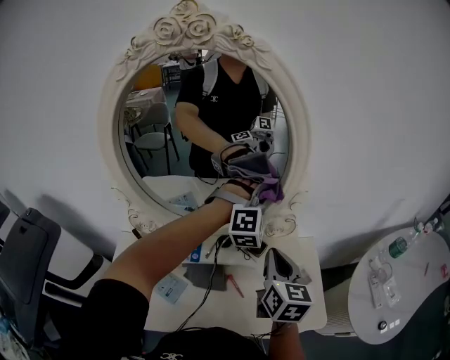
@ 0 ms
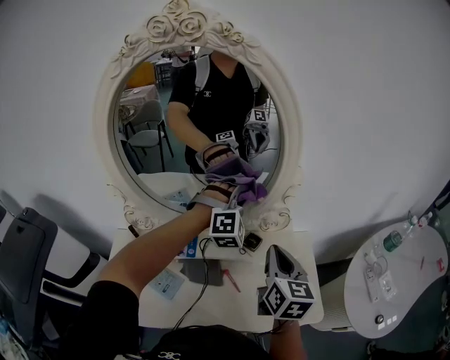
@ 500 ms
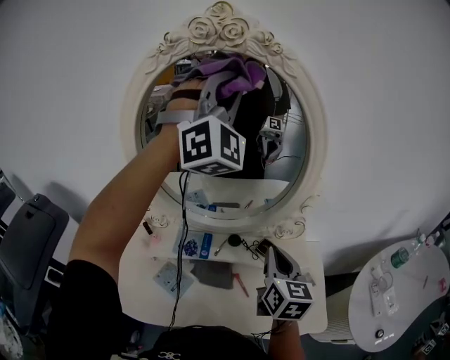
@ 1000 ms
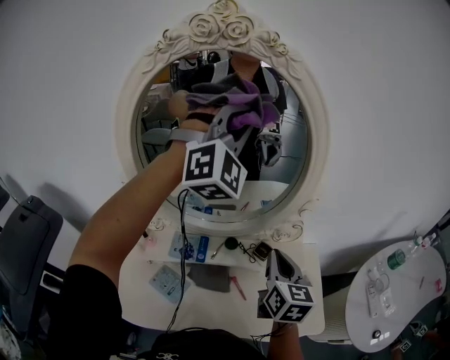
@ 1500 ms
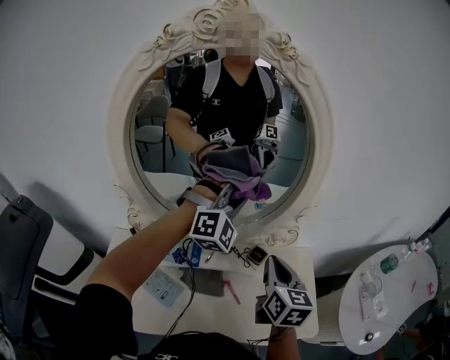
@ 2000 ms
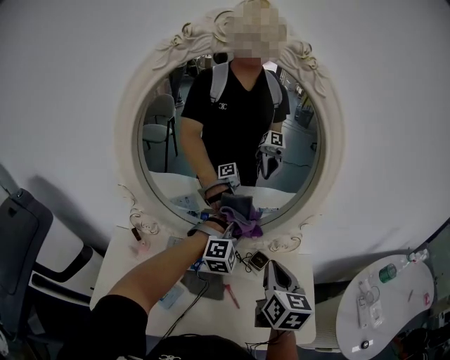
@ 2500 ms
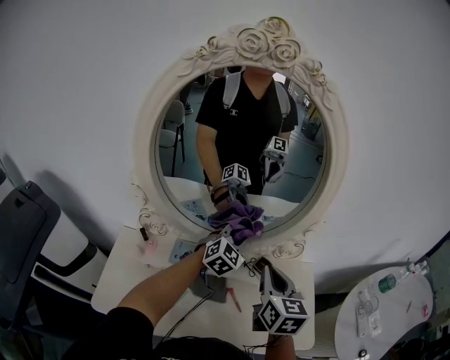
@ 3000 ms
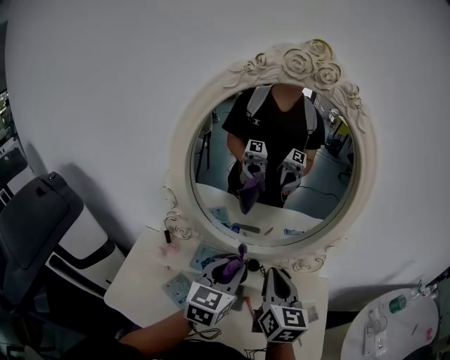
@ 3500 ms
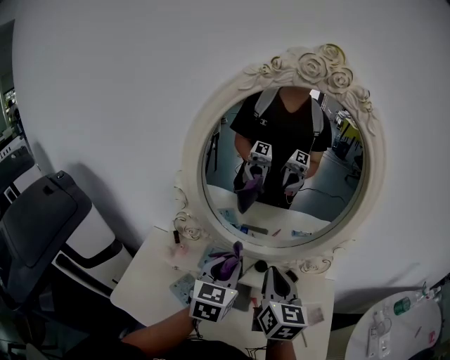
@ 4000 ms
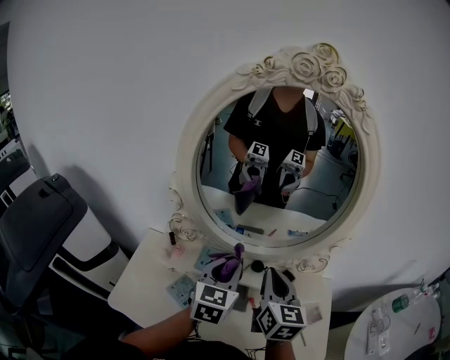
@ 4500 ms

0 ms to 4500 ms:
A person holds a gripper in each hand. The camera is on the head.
0 ms to 2000 ms: The left gripper shifts some 10 cm to the left, and moves about 35 cm upward and comes back.
2000 ms to 4500 ms: The right gripper moves to the left, some 10 cm, while the left gripper shifts some 20 cm backward, to the left and downward, and rotates around the line of its fingers by about 70 degrees, counterclockwise from behind.

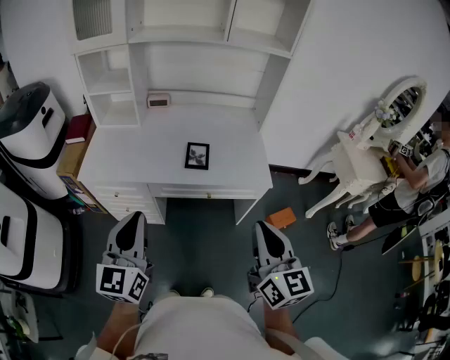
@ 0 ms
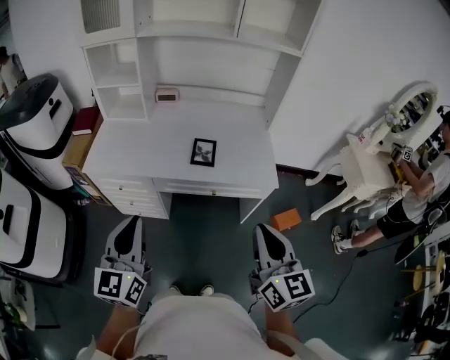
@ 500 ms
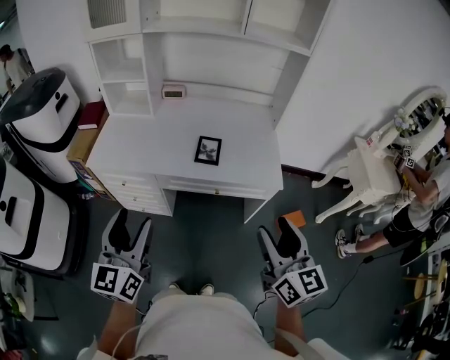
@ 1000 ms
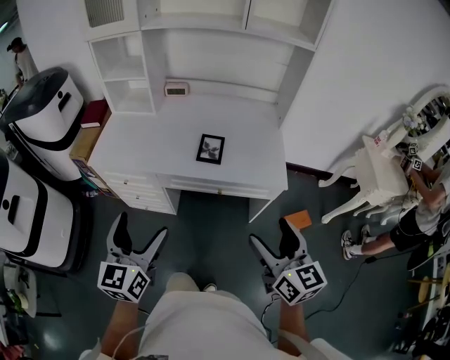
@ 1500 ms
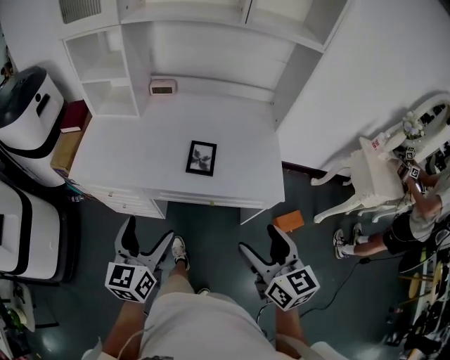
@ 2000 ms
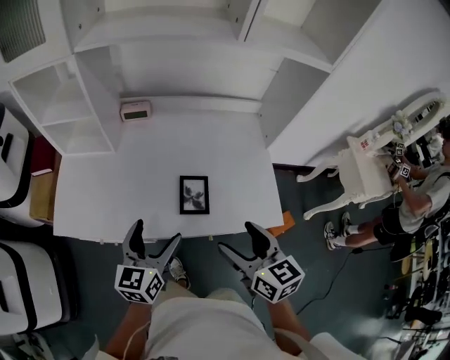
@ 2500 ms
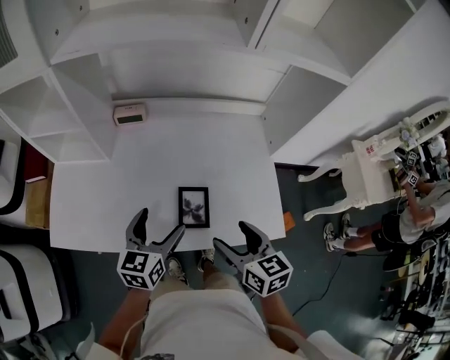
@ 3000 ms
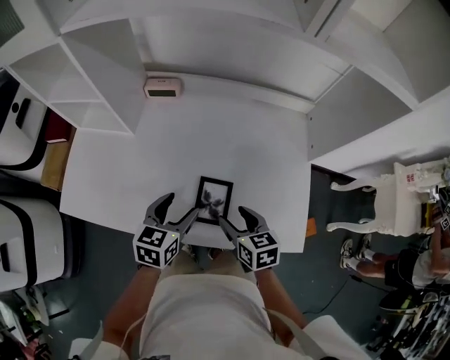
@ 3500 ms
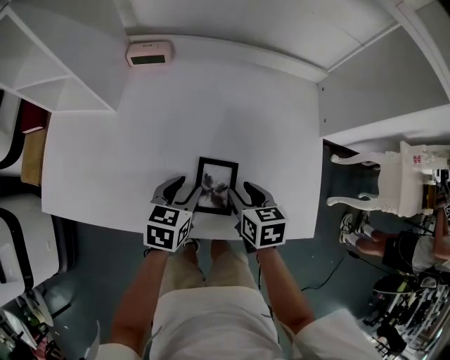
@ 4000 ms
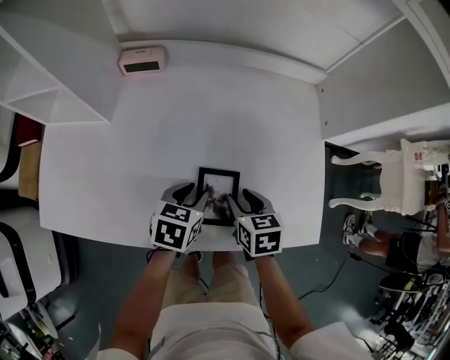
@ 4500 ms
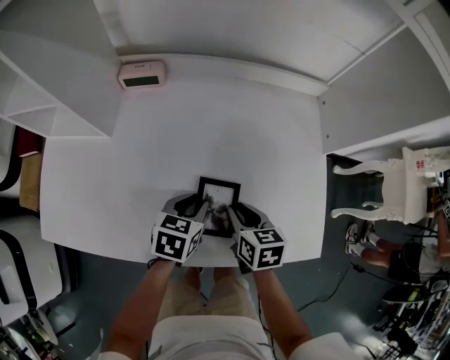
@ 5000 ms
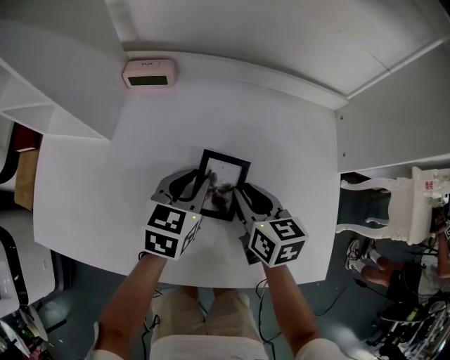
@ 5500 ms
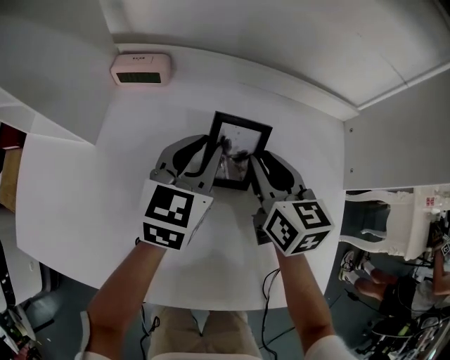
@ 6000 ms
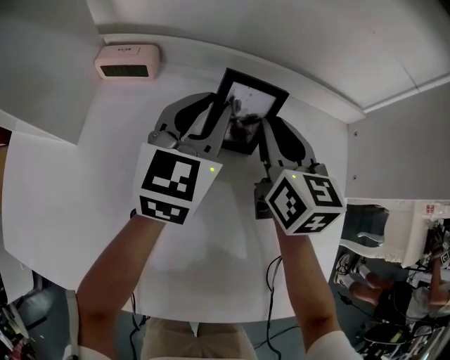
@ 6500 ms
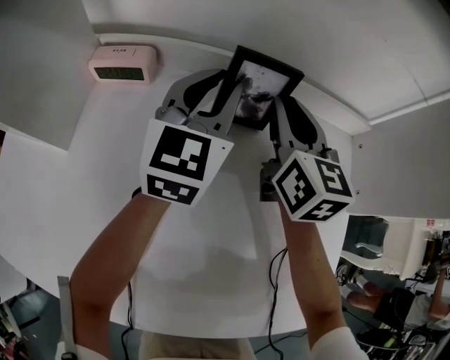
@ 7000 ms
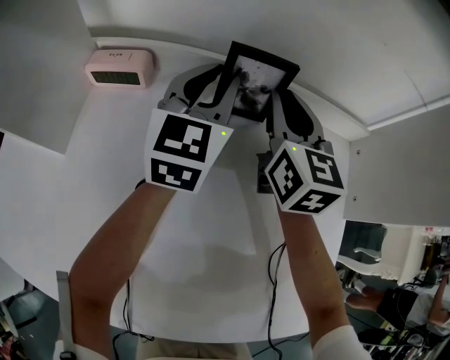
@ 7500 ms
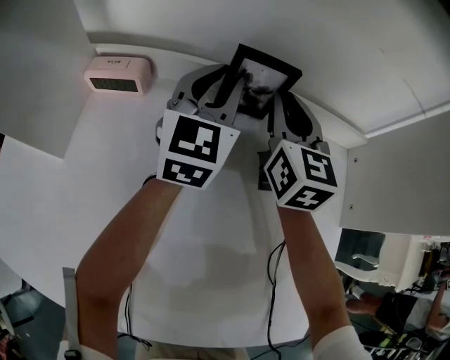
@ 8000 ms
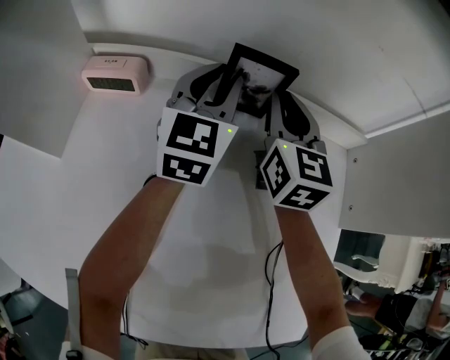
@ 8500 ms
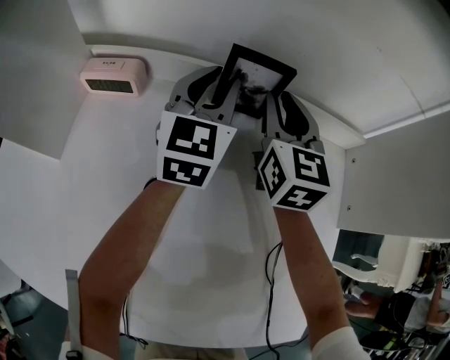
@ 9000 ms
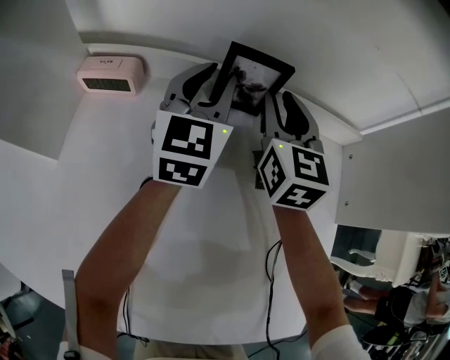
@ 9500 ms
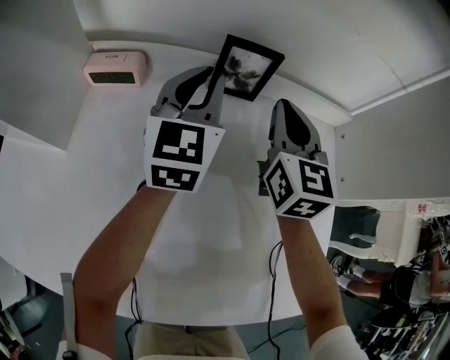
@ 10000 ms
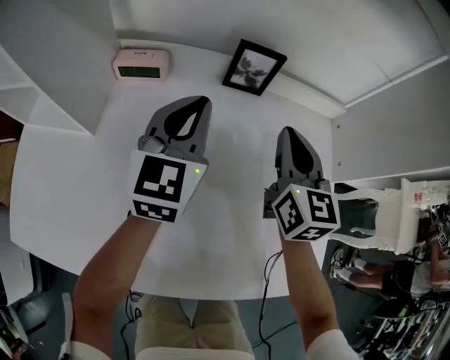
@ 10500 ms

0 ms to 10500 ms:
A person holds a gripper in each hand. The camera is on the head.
0 ms to 2000 ms: The left gripper is displaced downward and forward by about 15 cm, and opens; the right gripper moves forward and downward, some 15 cm, and opens its fingers.
2000 ms to 4000 ms: The grippers both shift forward and downward by approximately 40 cm. The right gripper tilts its fingers approximately 30 degrees downward, and closes its fingers. The left gripper angles its fingers downward, by approximately 30 degrees, and closes its fingers.
4000 ms to 6500 ms: Both grippers travel together forward, some 30 cm. The right gripper tilts its fingers some 30 degrees upward, while the left gripper points its fingers approximately 30 degrees further upward.
6500 ms to 8500 ms: The grippers both shift forward by approximately 10 cm.
8500 ms to 10500 ms: The two grippers go some 15 cm backward.

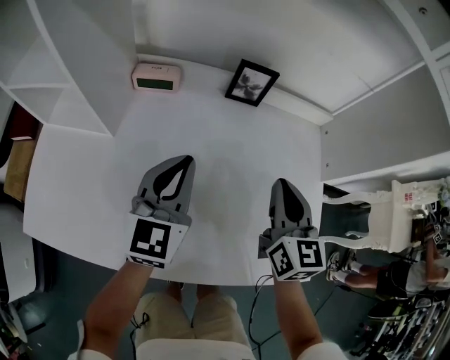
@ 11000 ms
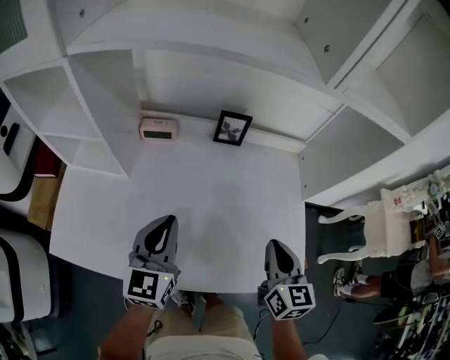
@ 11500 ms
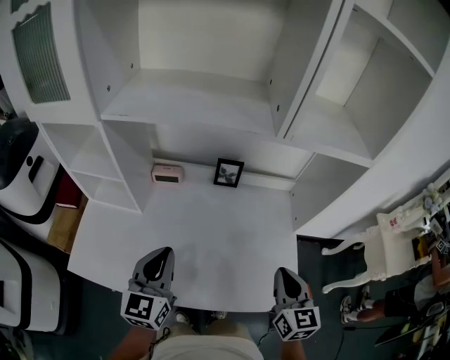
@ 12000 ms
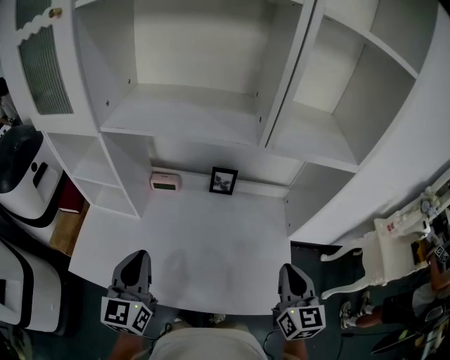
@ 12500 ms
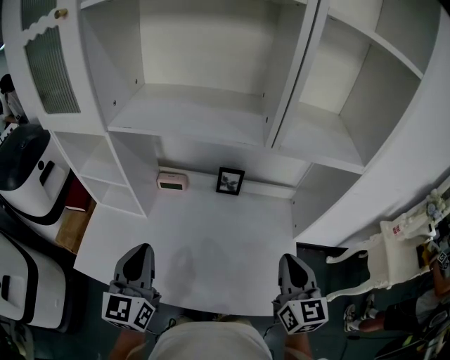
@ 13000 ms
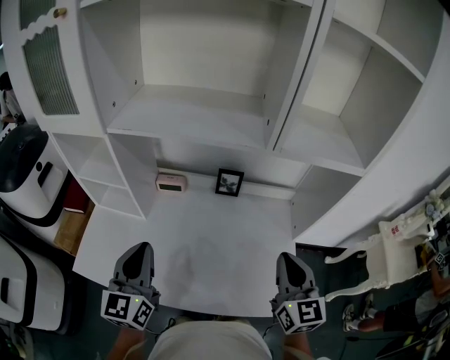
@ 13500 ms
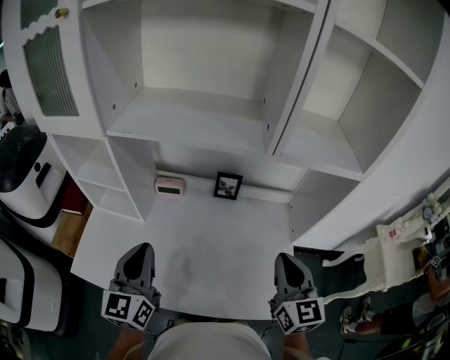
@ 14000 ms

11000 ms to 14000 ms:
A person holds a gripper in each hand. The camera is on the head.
11000 ms to 12500 ms: The left gripper is displaced upward and backward by some 25 cm. Meanwhile the right gripper is displaced upward, backward and to the right by approximately 25 cm.
12500 ms to 14000 ms: The right gripper shifts by roughly 5 cm.

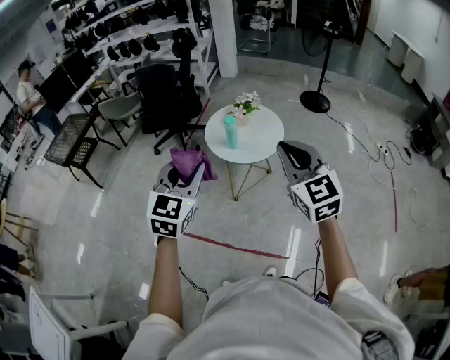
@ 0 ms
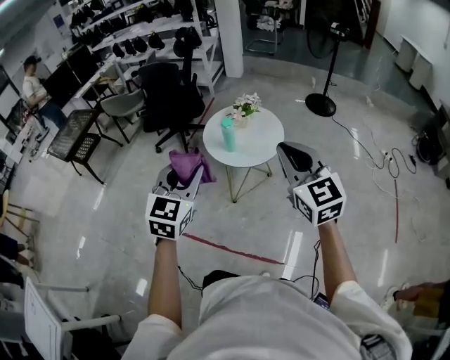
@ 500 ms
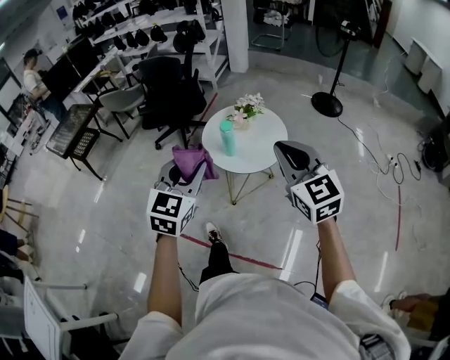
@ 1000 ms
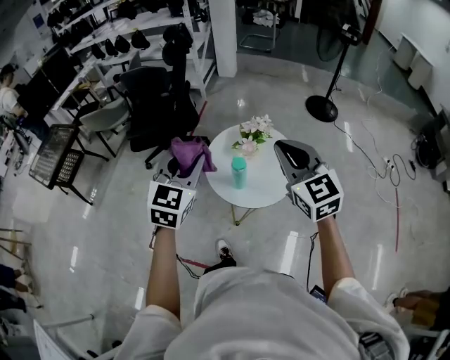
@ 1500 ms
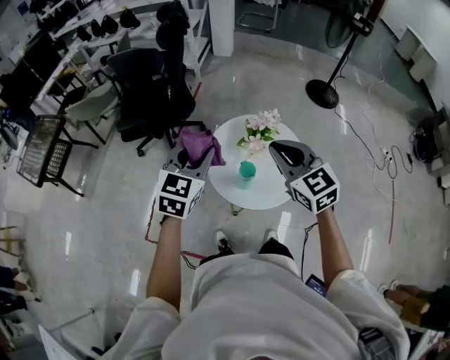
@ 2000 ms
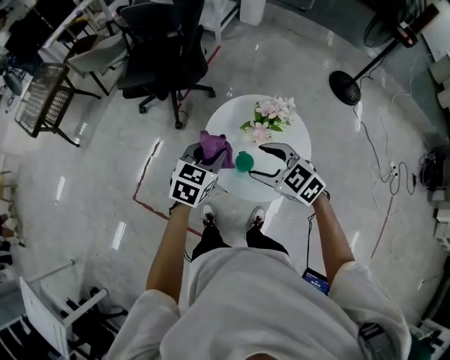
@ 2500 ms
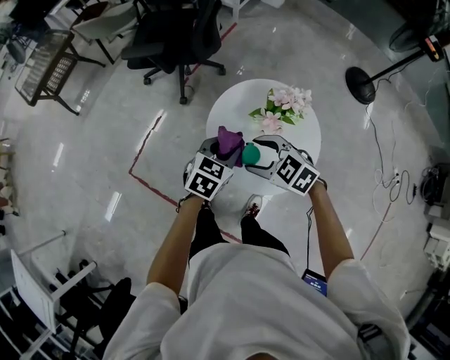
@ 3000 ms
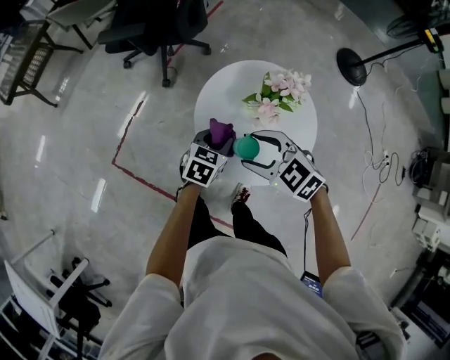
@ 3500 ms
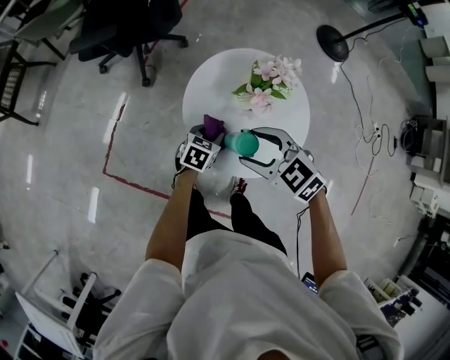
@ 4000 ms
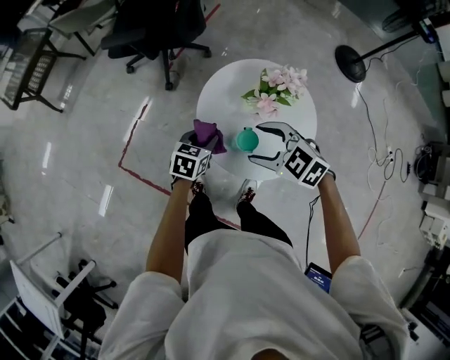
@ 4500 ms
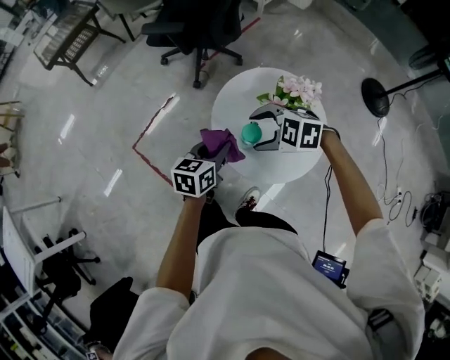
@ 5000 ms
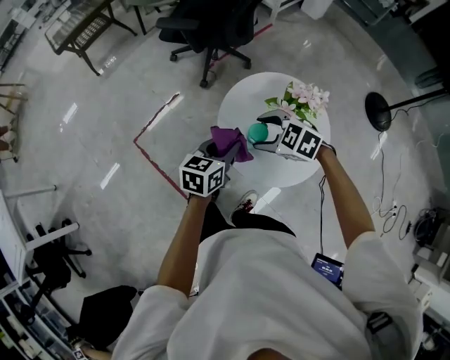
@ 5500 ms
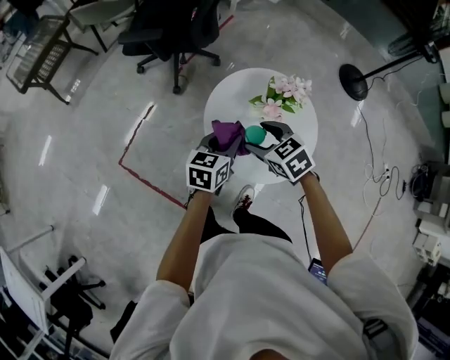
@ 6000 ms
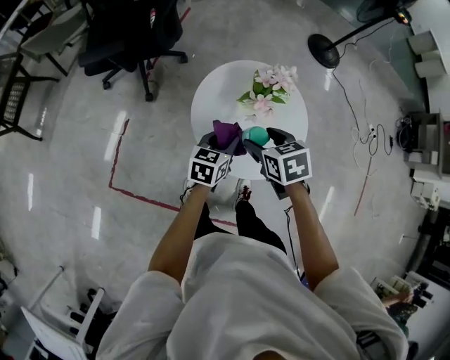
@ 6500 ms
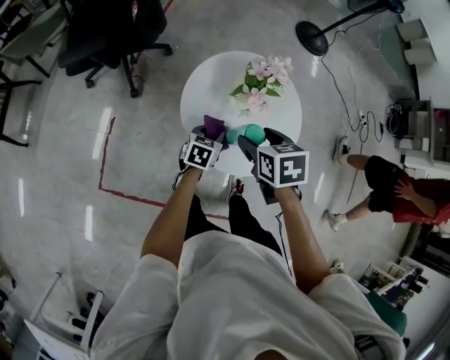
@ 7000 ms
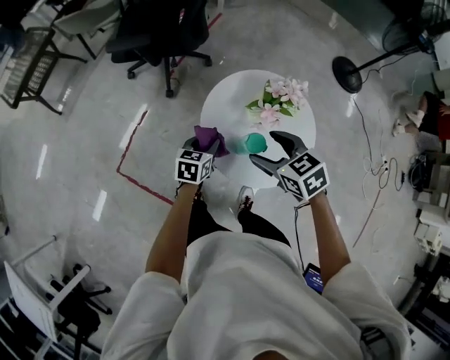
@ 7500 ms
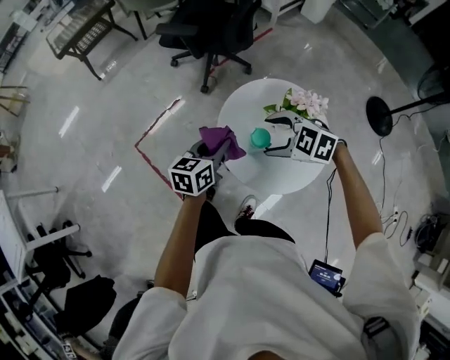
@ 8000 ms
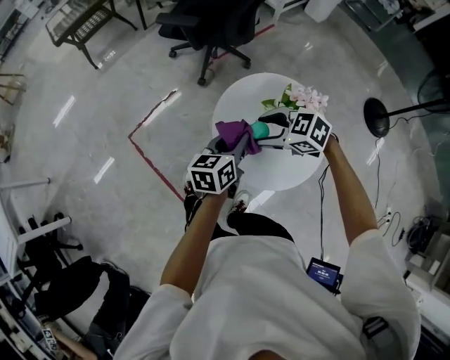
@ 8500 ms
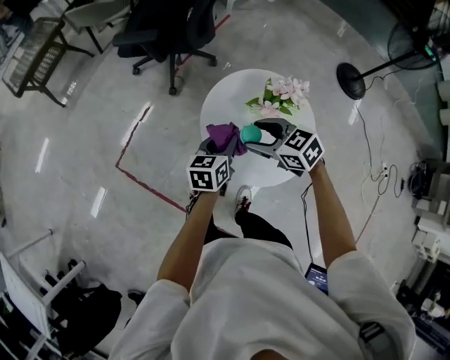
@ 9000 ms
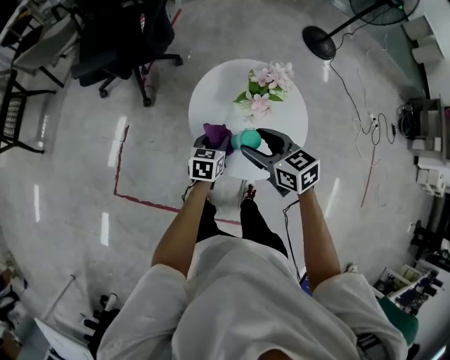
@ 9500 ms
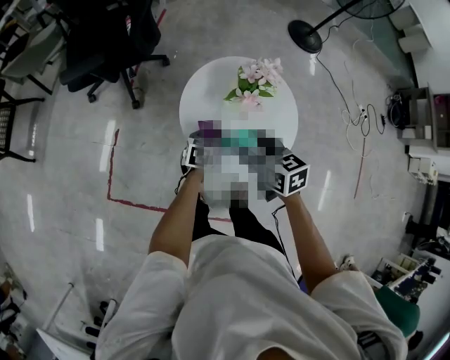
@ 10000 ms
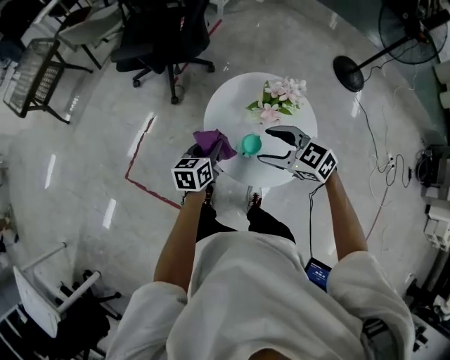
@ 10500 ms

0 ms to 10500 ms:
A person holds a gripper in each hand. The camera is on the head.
0 ms to 2000 ms: The two grippers travel together, forward, about 40 cm.
2000 ms to 4000 ms: The left gripper shifts some 40 cm downward, and changes its angle by about 40 degrees. The right gripper goes about 25 cm downward, rotates roughly 40 degrees, and opens its fingers.
4000 ms to 6500 ms: The right gripper rotates roughly 40 degrees. Meanwhile the left gripper is displaced upward by roughly 10 cm.
6500 ms to 8500 ms: The right gripper turns by some 80 degrees; the left gripper moves upward, roughly 10 cm, and rotates some 40 degrees.
8500 ms to 10500 ms: The right gripper changes its angle by about 30 degrees. Meanwhile the left gripper travels downward by about 5 cm, and swivels approximately 20 degrees.
